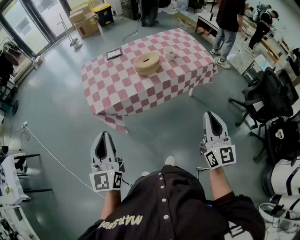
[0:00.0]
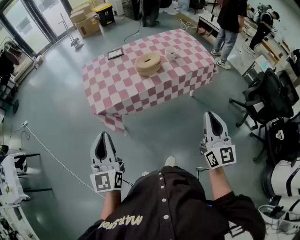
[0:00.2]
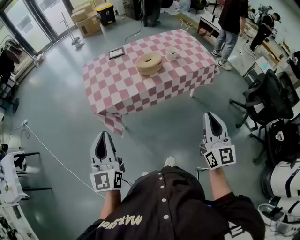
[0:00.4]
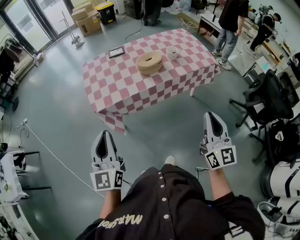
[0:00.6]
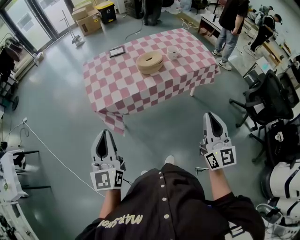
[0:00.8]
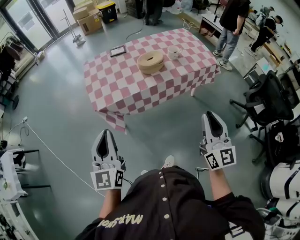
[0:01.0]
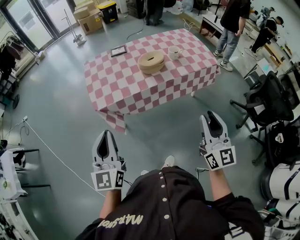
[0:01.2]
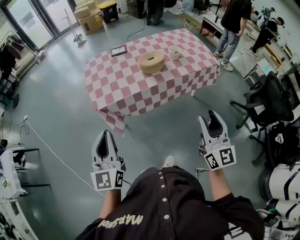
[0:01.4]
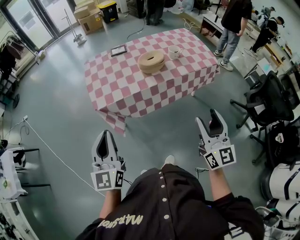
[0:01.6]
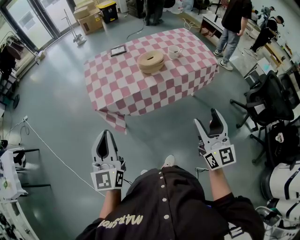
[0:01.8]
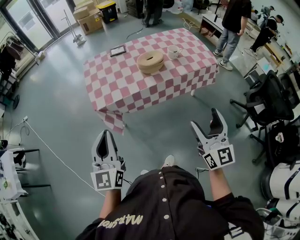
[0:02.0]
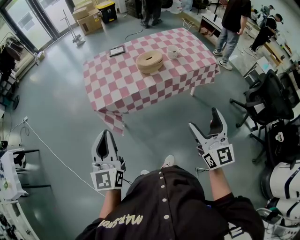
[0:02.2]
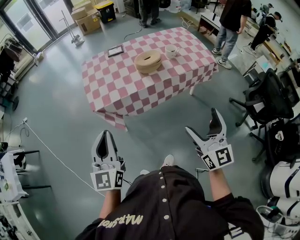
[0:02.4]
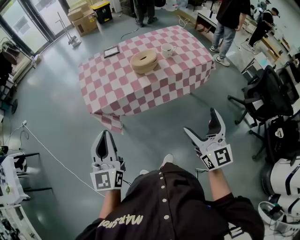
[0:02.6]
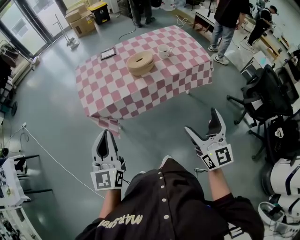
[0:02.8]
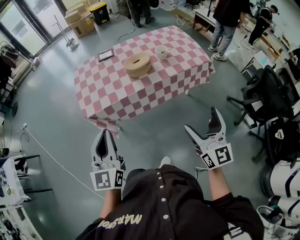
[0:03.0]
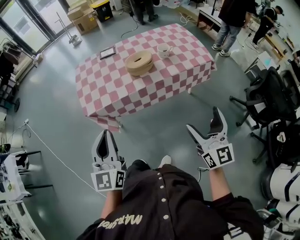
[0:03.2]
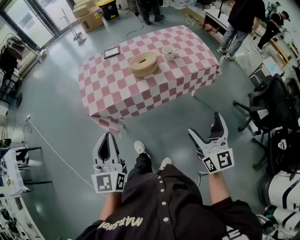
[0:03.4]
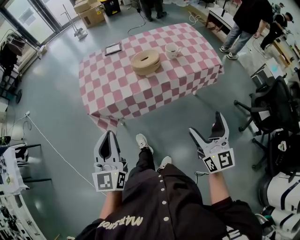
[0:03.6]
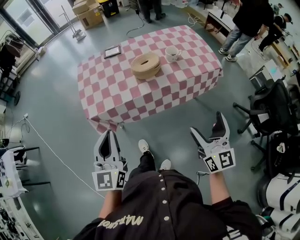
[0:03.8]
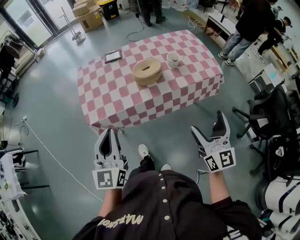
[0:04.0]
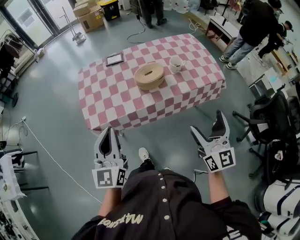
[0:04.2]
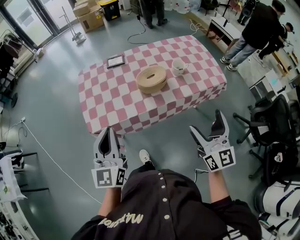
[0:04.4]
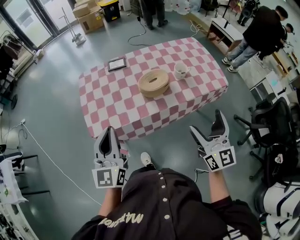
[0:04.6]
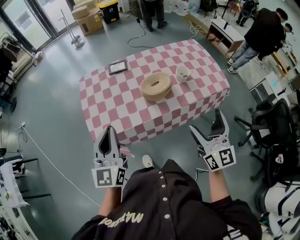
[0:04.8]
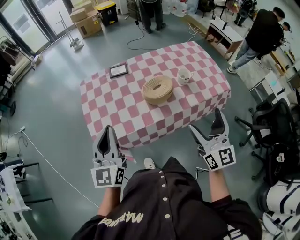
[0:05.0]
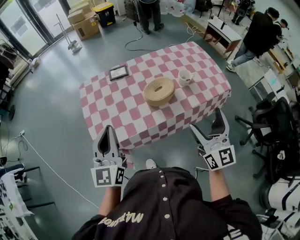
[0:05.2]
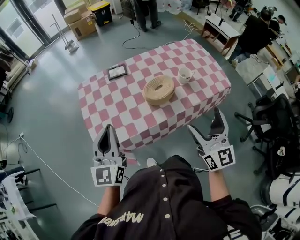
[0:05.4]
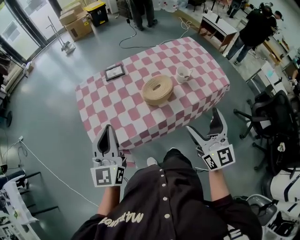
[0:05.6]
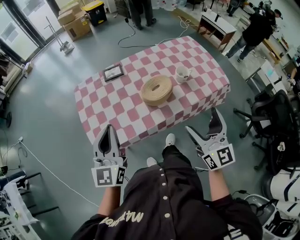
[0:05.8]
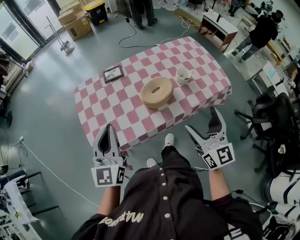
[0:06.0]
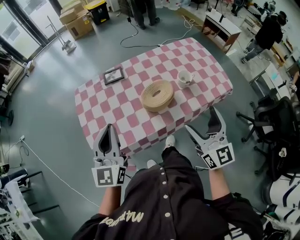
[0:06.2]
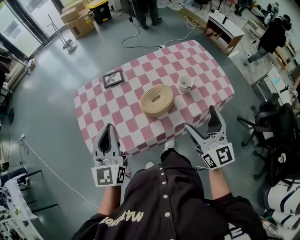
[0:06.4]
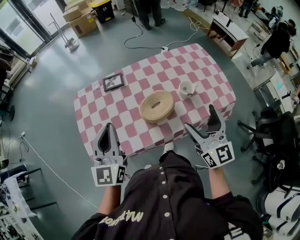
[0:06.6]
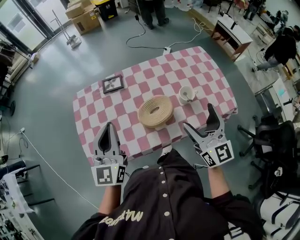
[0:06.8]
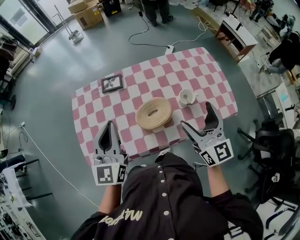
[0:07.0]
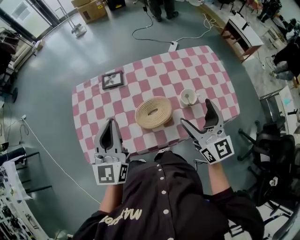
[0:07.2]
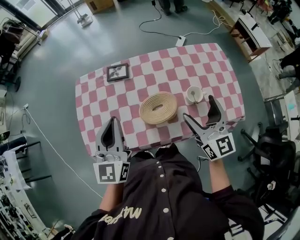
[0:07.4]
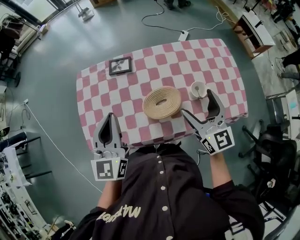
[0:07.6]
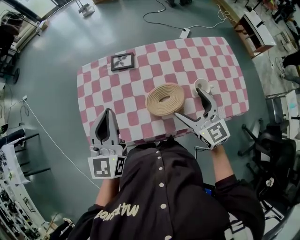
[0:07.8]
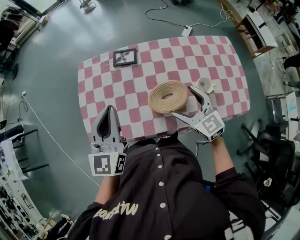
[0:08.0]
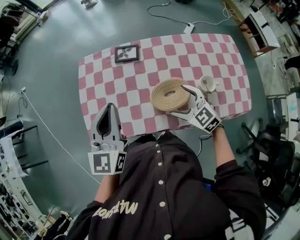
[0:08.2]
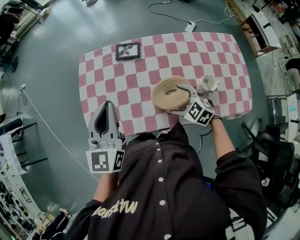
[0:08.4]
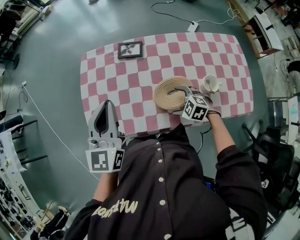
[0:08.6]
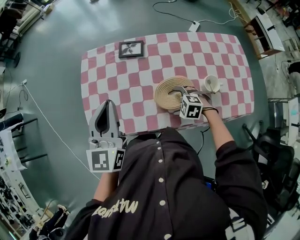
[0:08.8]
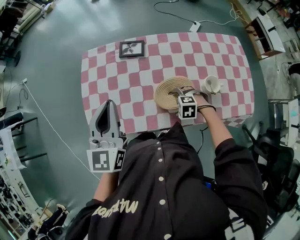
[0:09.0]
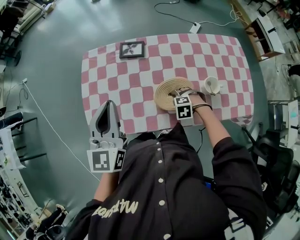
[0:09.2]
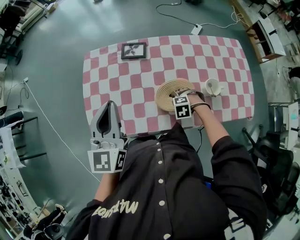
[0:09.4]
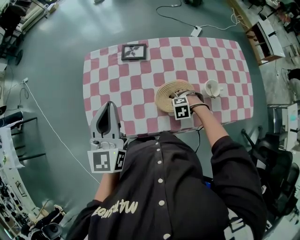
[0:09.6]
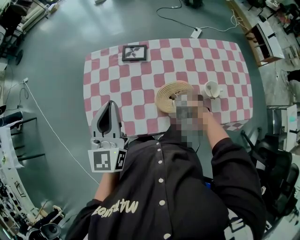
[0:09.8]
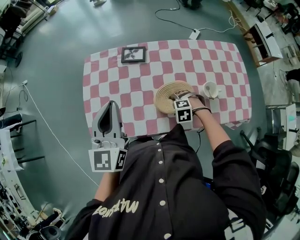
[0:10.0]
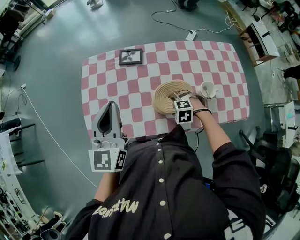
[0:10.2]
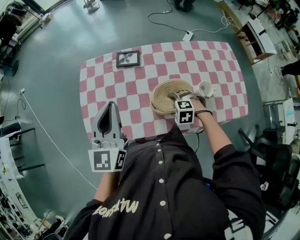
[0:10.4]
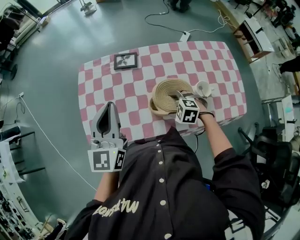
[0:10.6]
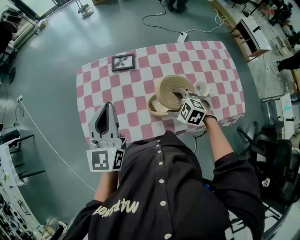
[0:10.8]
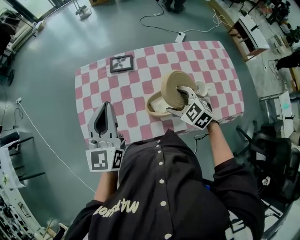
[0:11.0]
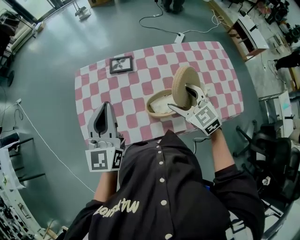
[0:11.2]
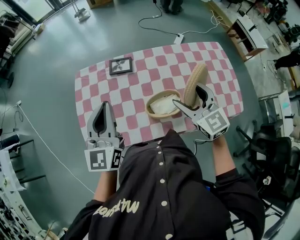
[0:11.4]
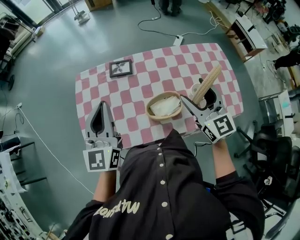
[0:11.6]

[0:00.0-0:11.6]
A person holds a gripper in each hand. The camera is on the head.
0:00.0 to 0:01.4: The grippers stay close to where they were, moving slightly.
0:01.4 to 0:02.8: The left gripper shifts some 5 cm to the right; the right gripper opens.
0:02.8 to 0:04.4: Both grippers move forward, roughly 20 cm.
0:04.4 to 0:05.8: The left gripper goes about 15 cm forward, while the right gripper goes roughly 10 cm forward and to the left.
0:05.8 to 0:07.2: The right gripper goes approximately 25 cm forward, while the left gripper heads forward and to the right, covering approximately 20 cm.
0:07.2 to 0:08.8: The left gripper shifts by approximately 10 cm, while the right gripper goes roughly 30 cm downward, and tilts its fingers approximately 70 degrees downward.
0:10.2 to 0:11.6: The right gripper moves upward, about 35 cm, and points its fingers some 70 degrees further upward.

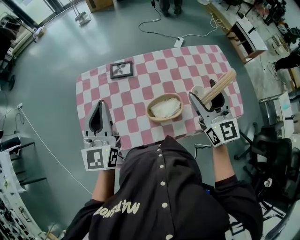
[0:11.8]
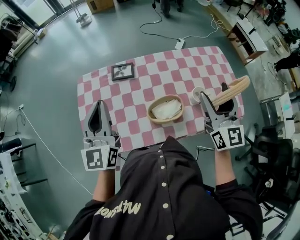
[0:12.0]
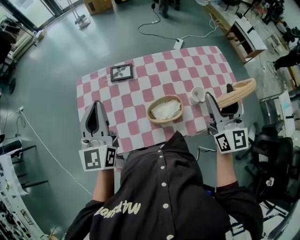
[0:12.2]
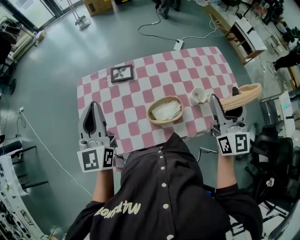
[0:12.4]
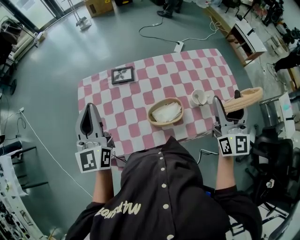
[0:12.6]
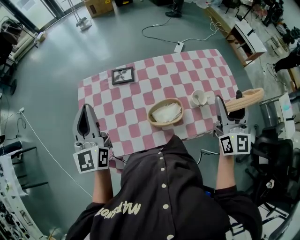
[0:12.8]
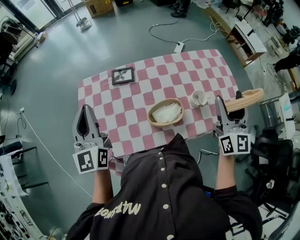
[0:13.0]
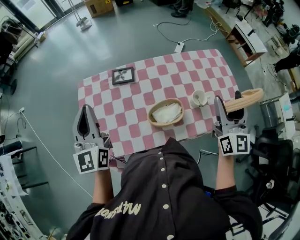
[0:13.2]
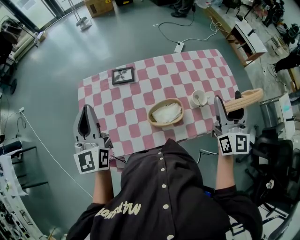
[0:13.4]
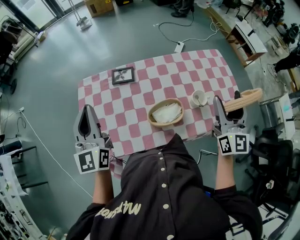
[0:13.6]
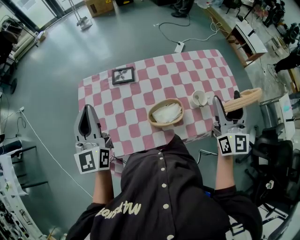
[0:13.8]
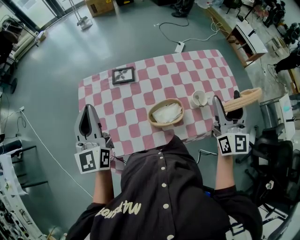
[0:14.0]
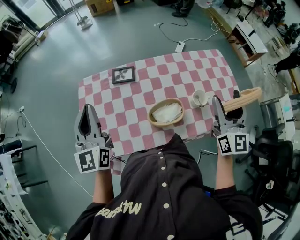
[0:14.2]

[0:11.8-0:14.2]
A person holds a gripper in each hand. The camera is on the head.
0:11.8 to 0:13.0: The left gripper moves to the left, about 5 cm. Meanwhile the right gripper heads to the right, covering roughly 10 cm.
0:13.0 to 0:14.2: Both grippers stay about where they are.

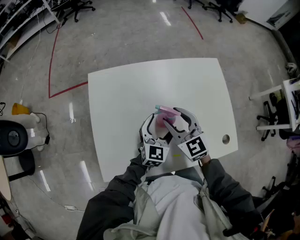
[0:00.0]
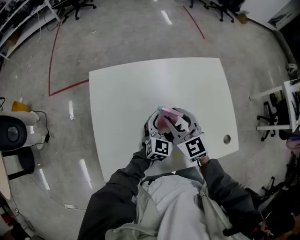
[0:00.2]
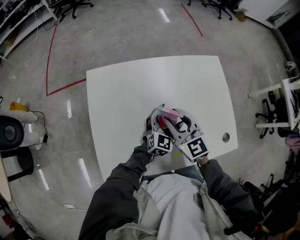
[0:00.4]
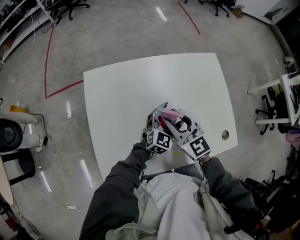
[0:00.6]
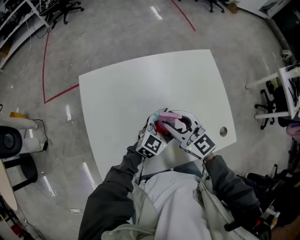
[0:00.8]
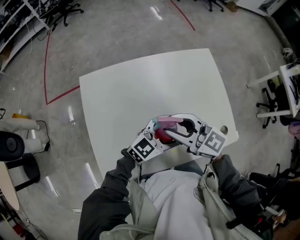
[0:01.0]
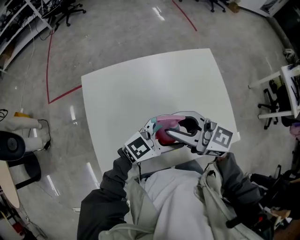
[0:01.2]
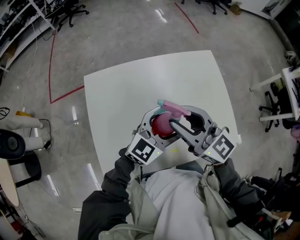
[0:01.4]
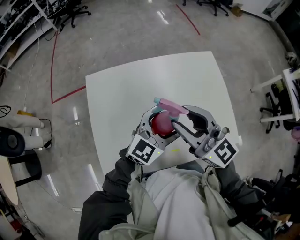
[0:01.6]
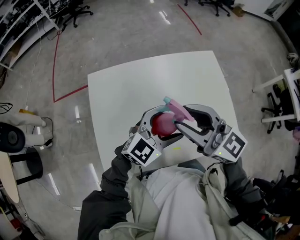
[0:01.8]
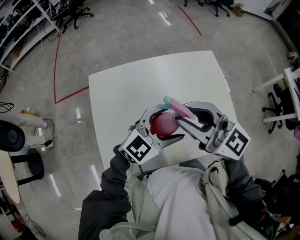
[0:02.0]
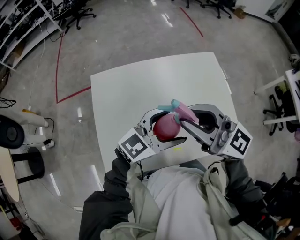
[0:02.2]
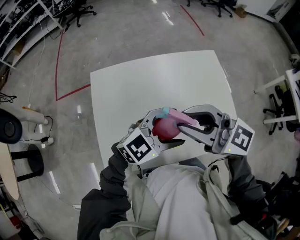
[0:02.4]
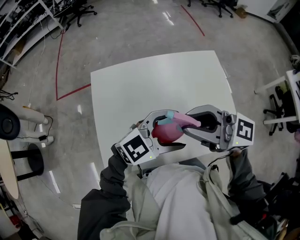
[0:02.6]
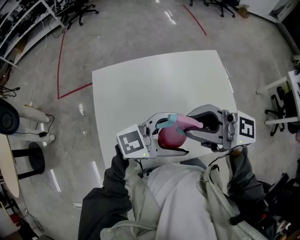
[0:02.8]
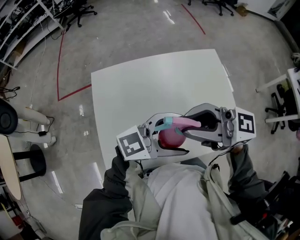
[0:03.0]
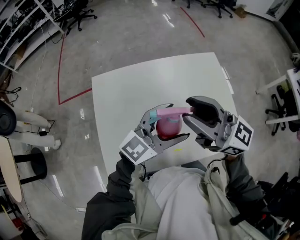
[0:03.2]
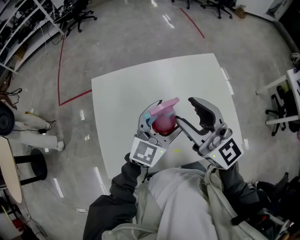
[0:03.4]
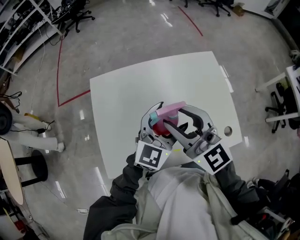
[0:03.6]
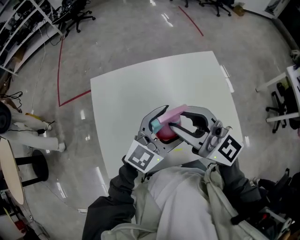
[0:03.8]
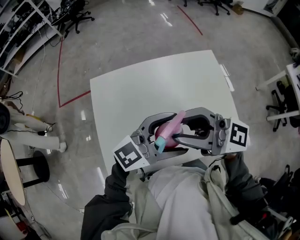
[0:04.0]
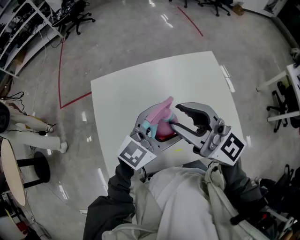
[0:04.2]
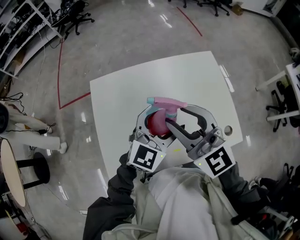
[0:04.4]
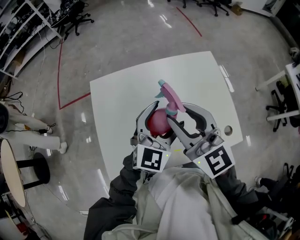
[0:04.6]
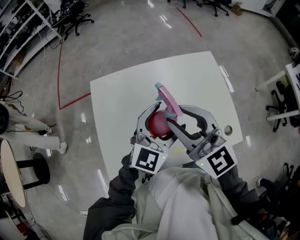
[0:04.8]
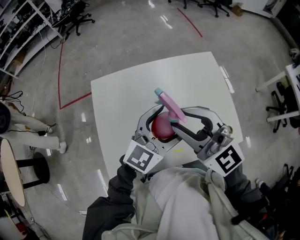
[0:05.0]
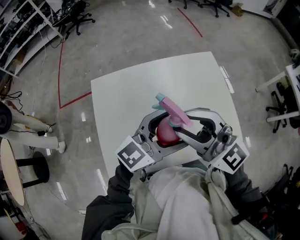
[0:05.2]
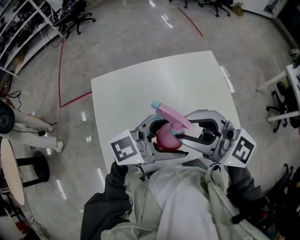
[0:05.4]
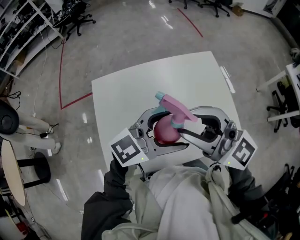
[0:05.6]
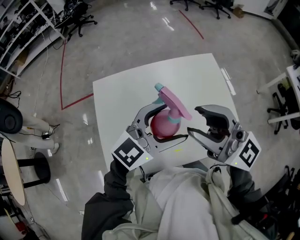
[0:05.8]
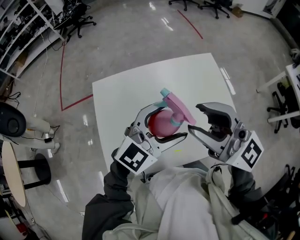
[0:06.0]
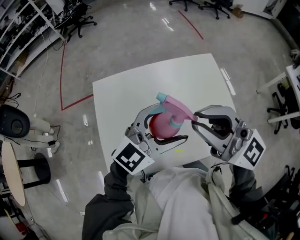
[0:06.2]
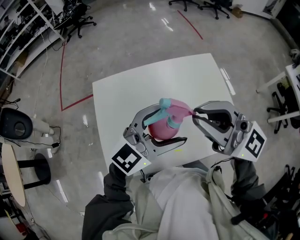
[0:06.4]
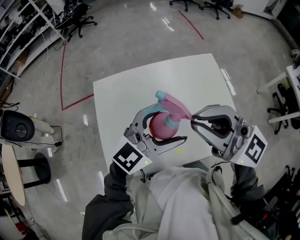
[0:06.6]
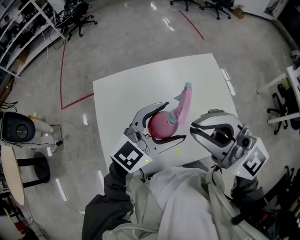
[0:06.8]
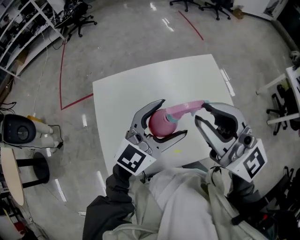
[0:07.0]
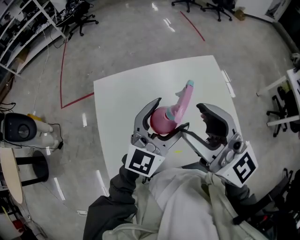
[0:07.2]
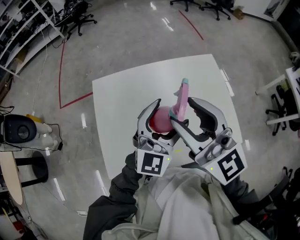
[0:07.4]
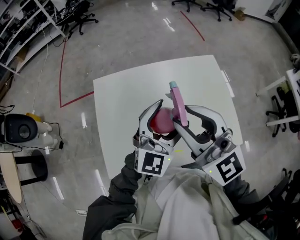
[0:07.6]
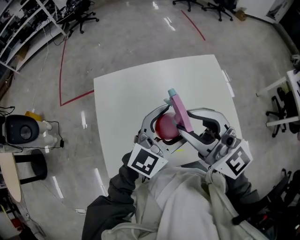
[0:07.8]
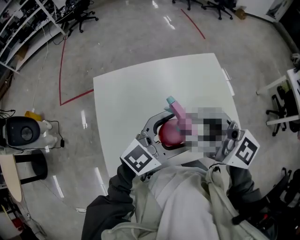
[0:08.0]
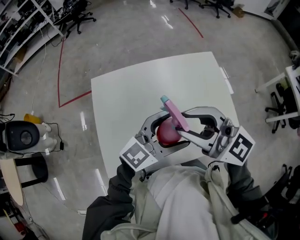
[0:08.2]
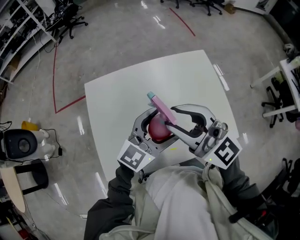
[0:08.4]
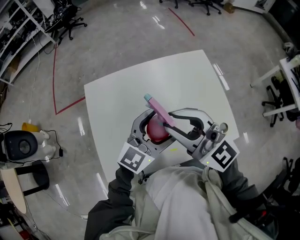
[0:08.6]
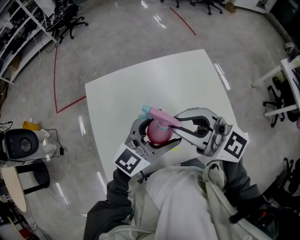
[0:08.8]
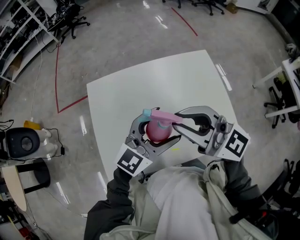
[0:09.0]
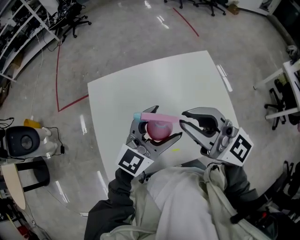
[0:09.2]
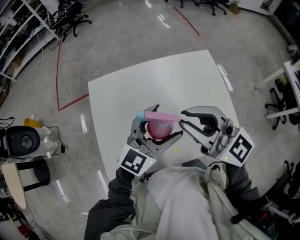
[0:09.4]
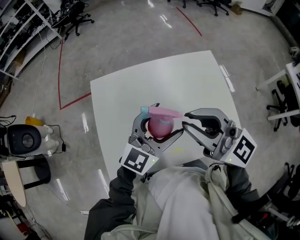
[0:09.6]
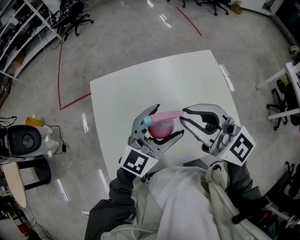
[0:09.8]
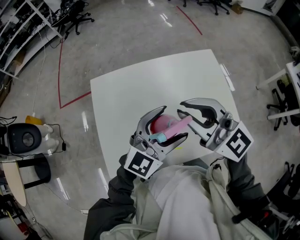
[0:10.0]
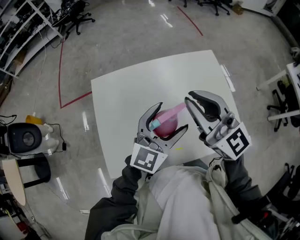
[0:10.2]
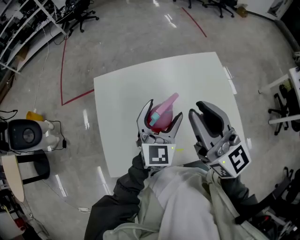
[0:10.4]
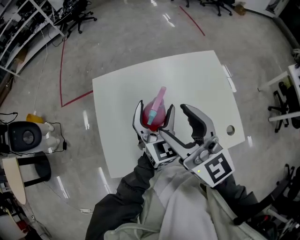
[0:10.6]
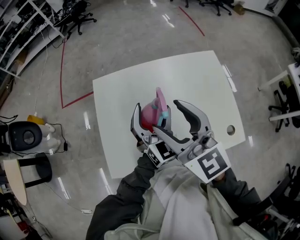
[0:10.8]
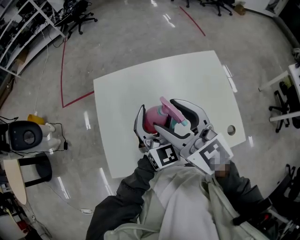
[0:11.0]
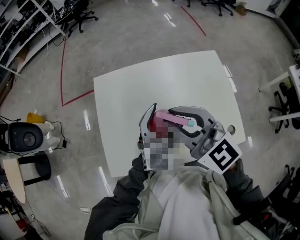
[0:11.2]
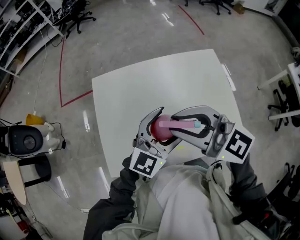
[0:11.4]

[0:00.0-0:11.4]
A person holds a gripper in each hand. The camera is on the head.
0:00.0 to 0:01.4: Both grippers travel together upward, some 15 cm. The left gripper swivels some 30 degrees, while the right gripper swivels some 30 degrees.
0:01.4 to 0:02.8: The left gripper moves roughly 10 cm, and rotates some 30 degrees. The right gripper is displaced upward by some 5 cm, and swivels roughly 40 degrees.
0:02.8 to 0:04.2: The left gripper changes its angle by some 30 degrees, while the right gripper rotates about 30 degrees.
0:04.2 to 0:05.6: The left gripper ends up some 5 cm from where it was.
0:05.6 to 0:07.2: The right gripper closes, then opens again. The left gripper ends up some 5 cm from where it was, and swivels approximately 40 degrees.
0:07.2 to 0:08.6: The left gripper changes place by approximately 5 cm. Meanwhile the right gripper travels downward by approximately 5 cm, and closes.
0:08.6 to 0:10.0: The grippers stay close to where they were, moving slightly.
0:10.0 to 0:11.4: The right gripper opens, then closes once more, while the left gripper reaches some 10 cm forward, then returns.
